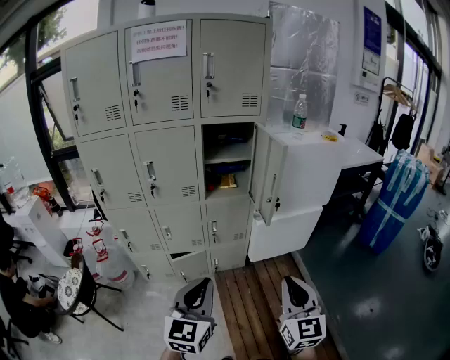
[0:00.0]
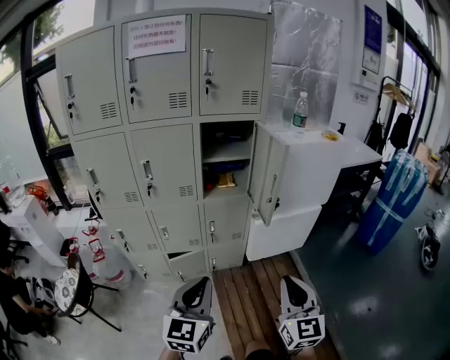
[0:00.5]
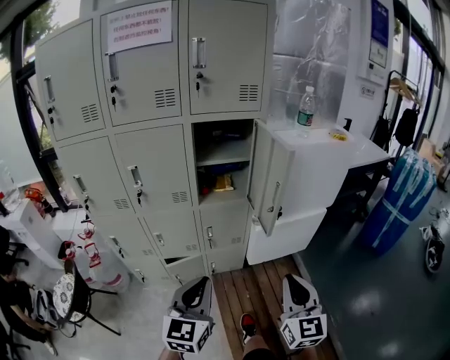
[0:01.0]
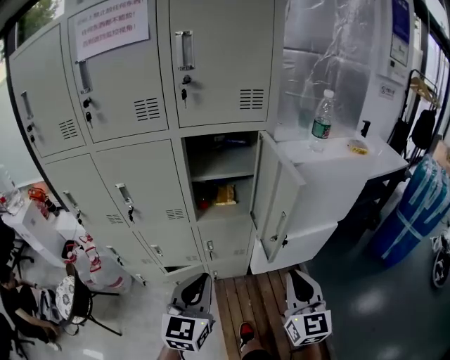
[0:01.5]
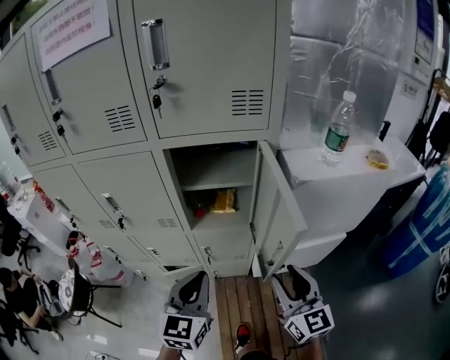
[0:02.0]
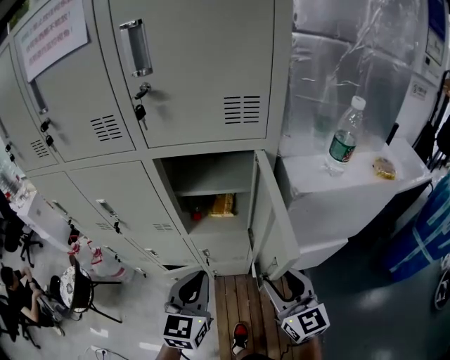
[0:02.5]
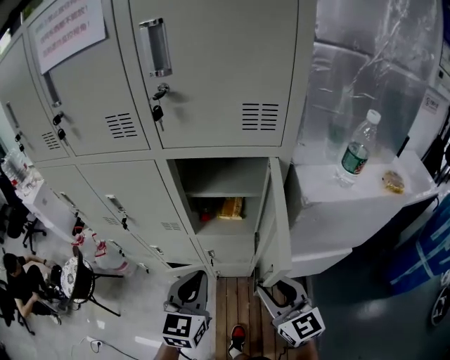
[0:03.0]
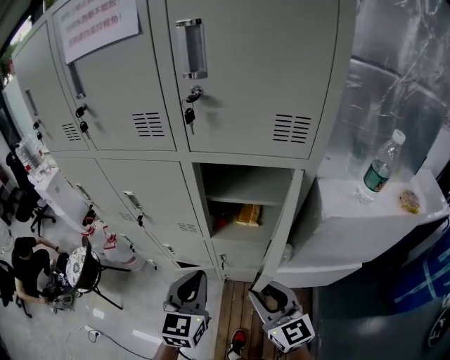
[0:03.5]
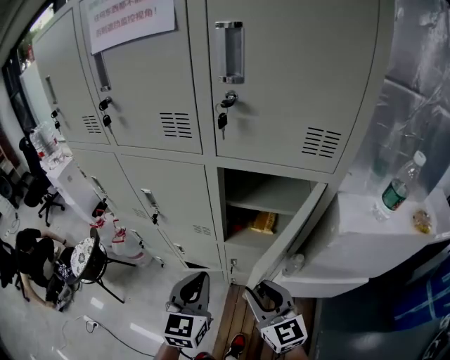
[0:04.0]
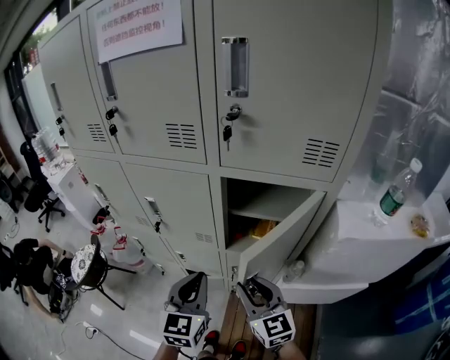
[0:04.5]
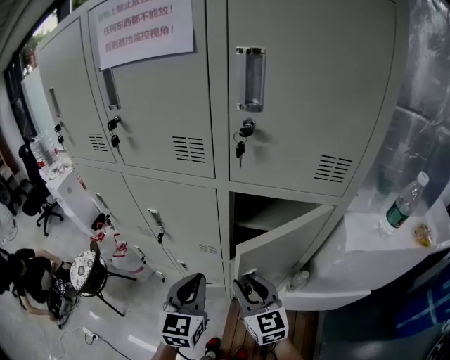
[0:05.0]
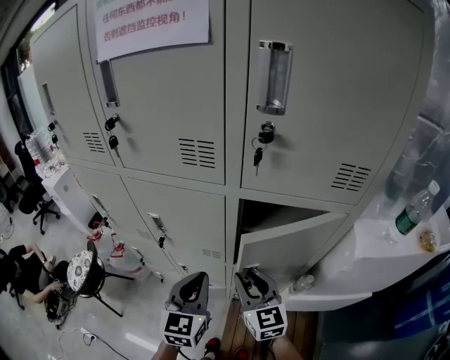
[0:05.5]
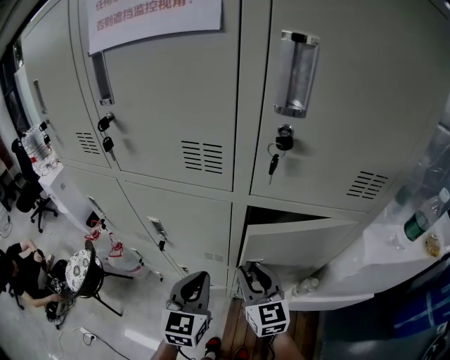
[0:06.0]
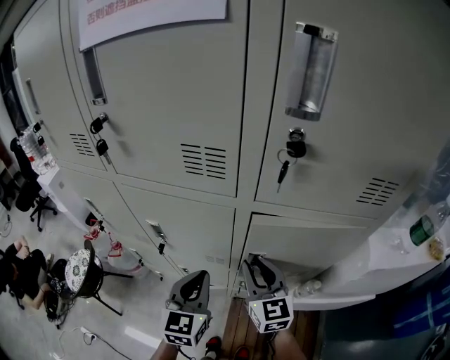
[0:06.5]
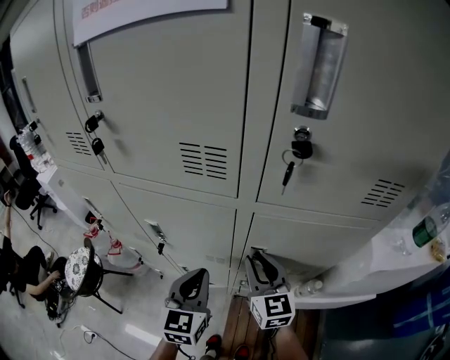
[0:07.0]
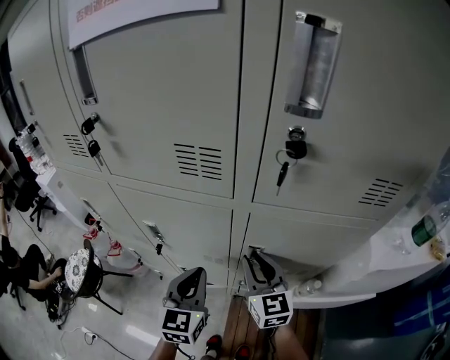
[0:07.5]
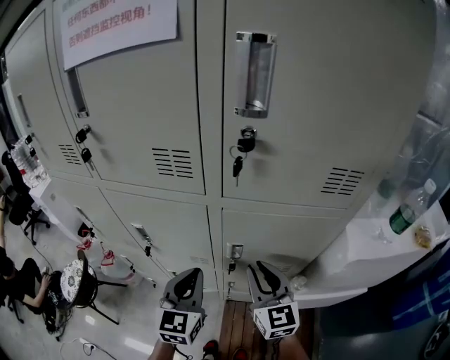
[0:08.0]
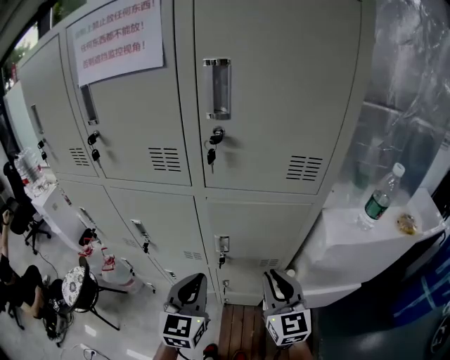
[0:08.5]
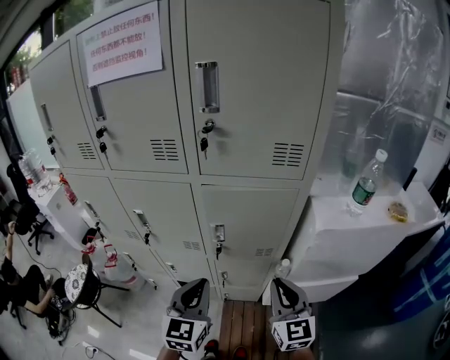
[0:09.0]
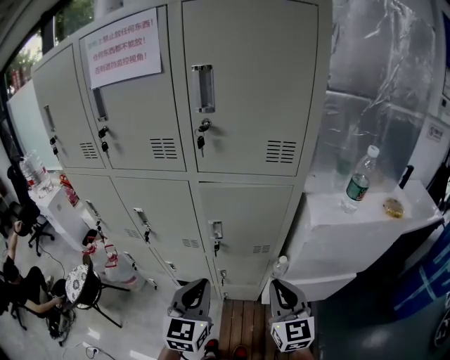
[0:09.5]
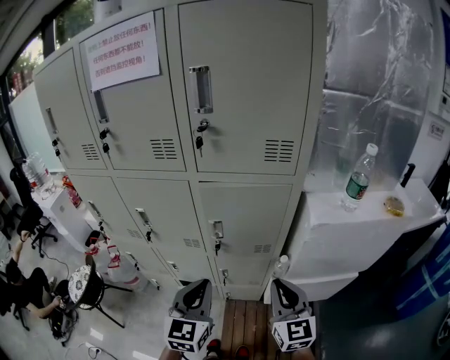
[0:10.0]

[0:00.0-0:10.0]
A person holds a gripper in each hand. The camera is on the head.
0:00.0 to 0:02.0: Both grippers travel together forward, about 35 cm. The right gripper swivels some 20 degrees, and opens.
0:02.0 to 0:04.0: The left gripper heads to the left and forward, covering approximately 10 cm. Meanwhile the right gripper shifts about 15 cm to the left and forward, and turns by roughly 30 degrees.
0:04.0 to 0:06.0: Both grippers travel together forward, some 15 cm.
0:06.0 to 0:08.0: The right gripper is displaced to the right by some 5 cm.
0:08.0 to 0:10.0: The two grippers go some 20 cm backward and to the right.

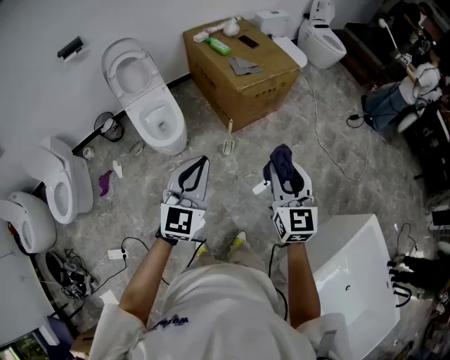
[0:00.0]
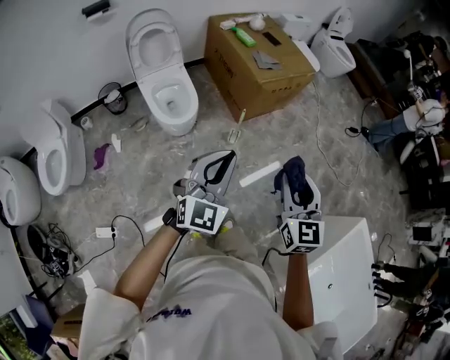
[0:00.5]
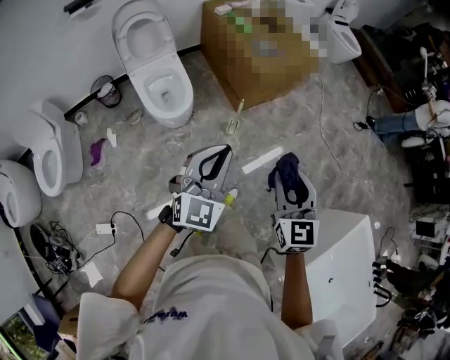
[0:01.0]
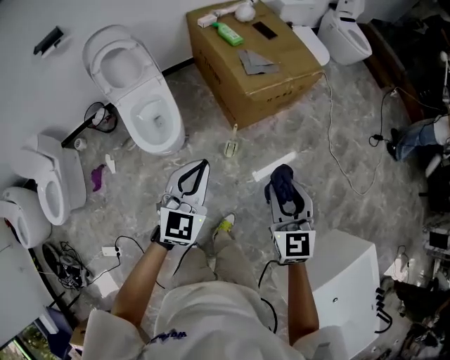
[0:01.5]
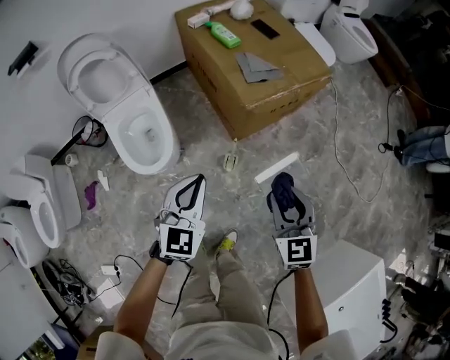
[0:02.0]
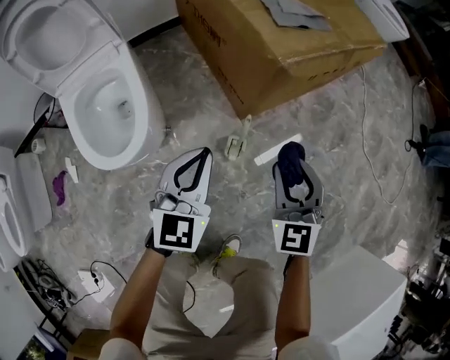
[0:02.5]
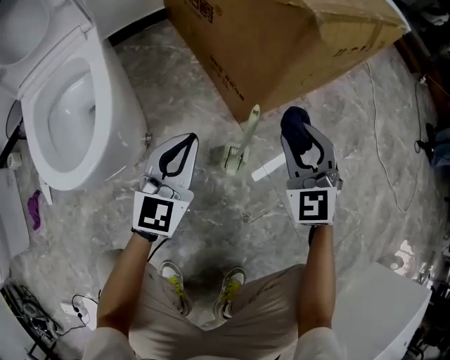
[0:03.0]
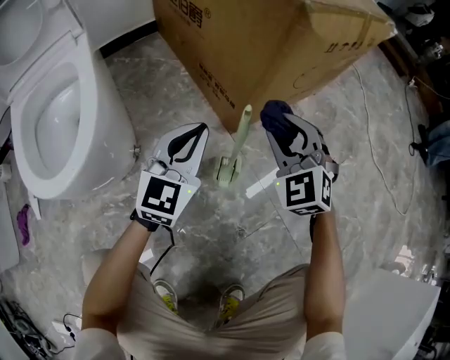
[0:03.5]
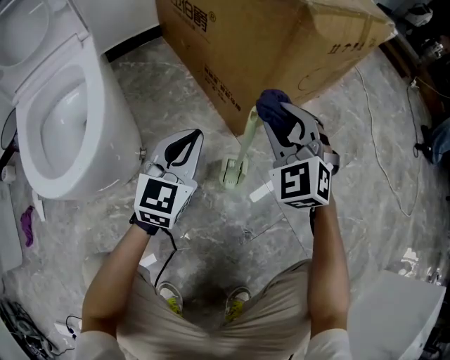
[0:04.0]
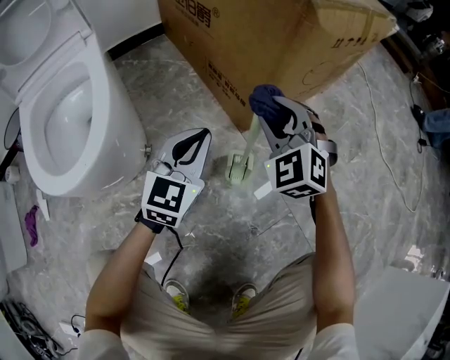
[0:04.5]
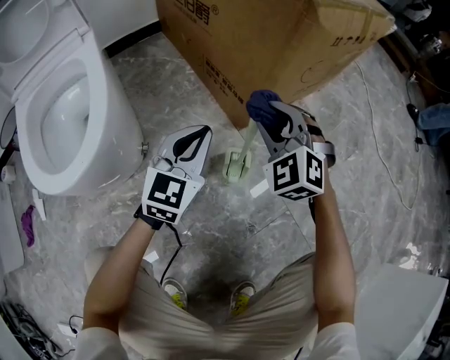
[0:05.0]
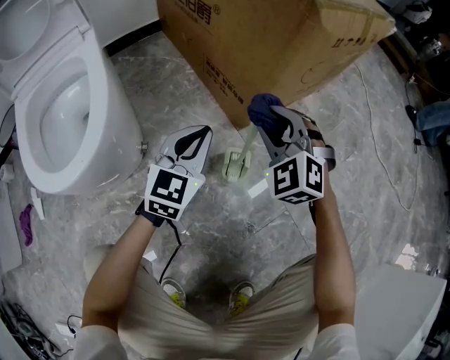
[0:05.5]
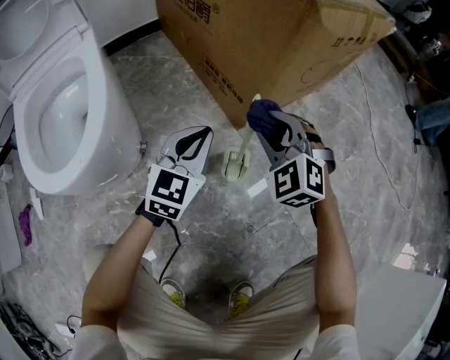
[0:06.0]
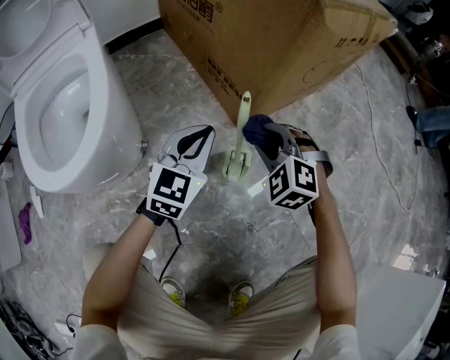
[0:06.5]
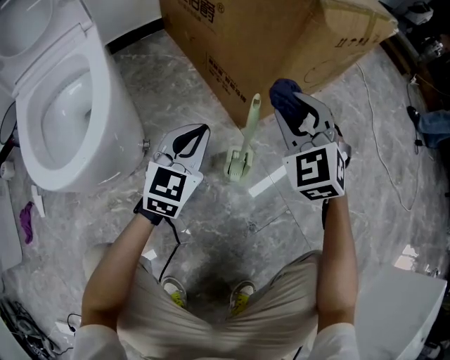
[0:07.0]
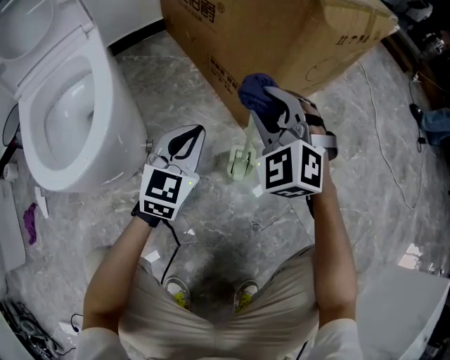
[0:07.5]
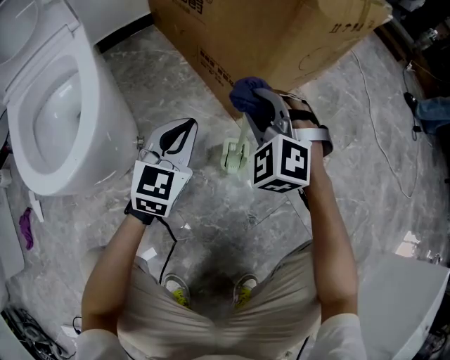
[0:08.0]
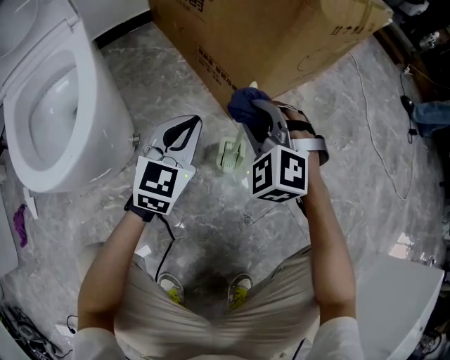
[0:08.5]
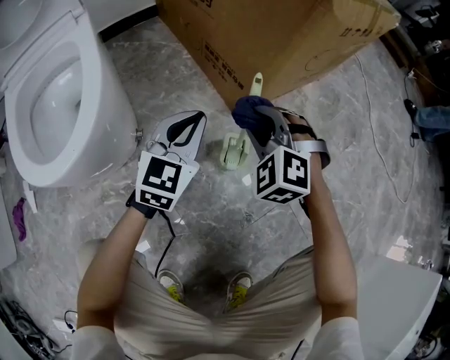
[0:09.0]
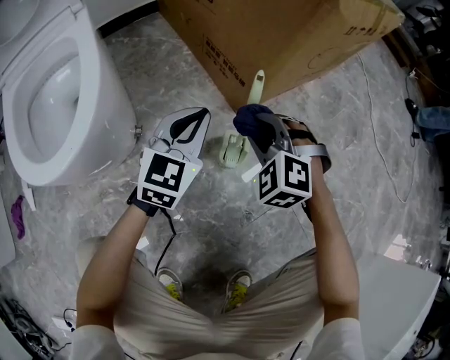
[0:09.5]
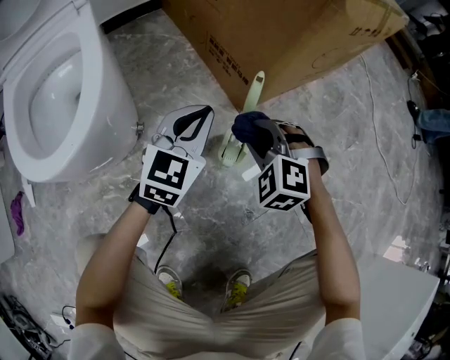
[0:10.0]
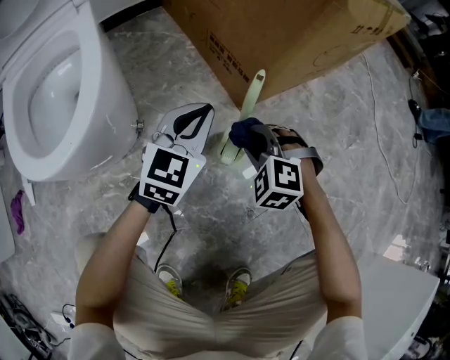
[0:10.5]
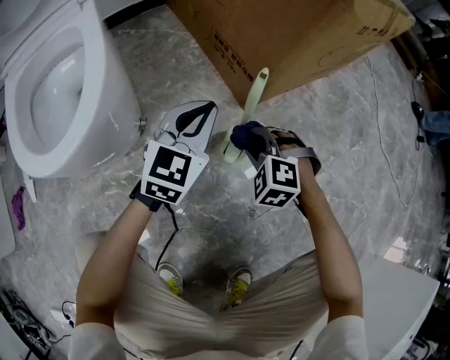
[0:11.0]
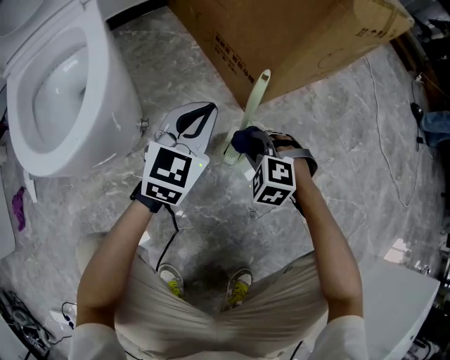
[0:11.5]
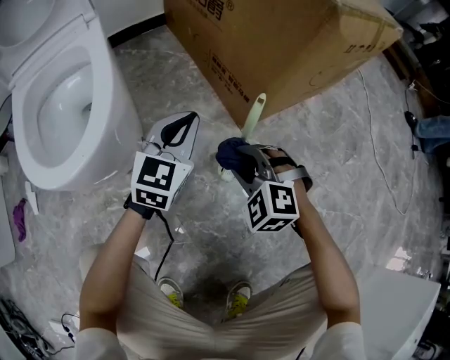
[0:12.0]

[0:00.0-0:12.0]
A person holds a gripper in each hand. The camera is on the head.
0:00.0 to 0:02.0: Both grippers travel together forward and downward, roughly 35 cm.
0:02.0 to 0:04.0: The right gripper heads downward and forward, covering some 50 cm, and swivels roughly 40 degrees. The left gripper goes about 50 cm downward.
0:04.0 to 0:06.0: The right gripper is displaced downward by roughly 5 cm.
0:06.0 to 0:08.0: The right gripper swings up and down, some 10 cm each way, with 2 reversals.
0:08.0 to 0:10.0: The right gripper goes roughly 10 cm downward and backward.
0:10.0 to 0:12.0: The right gripper travels downward and back again, roughly 10 cm each way.

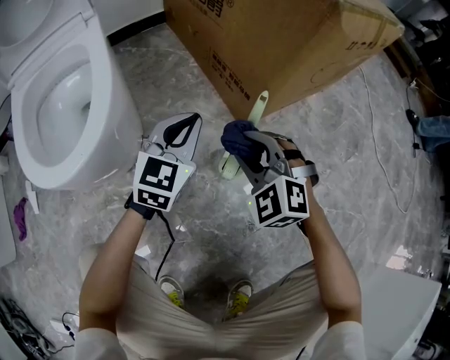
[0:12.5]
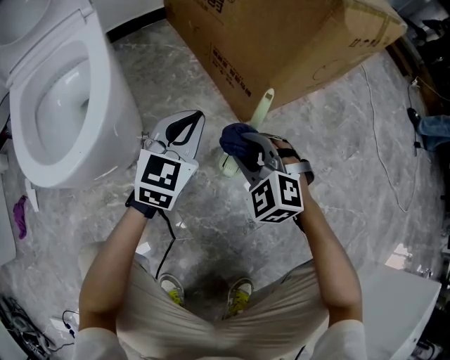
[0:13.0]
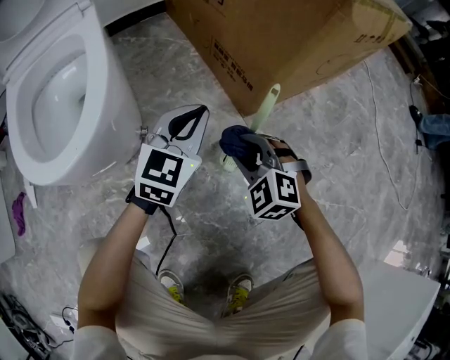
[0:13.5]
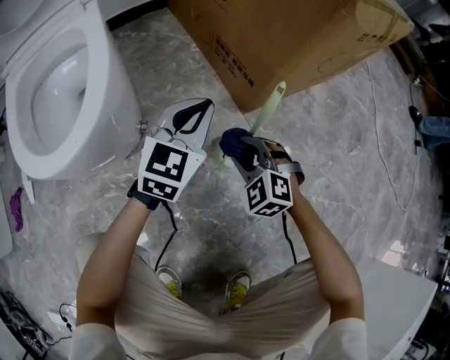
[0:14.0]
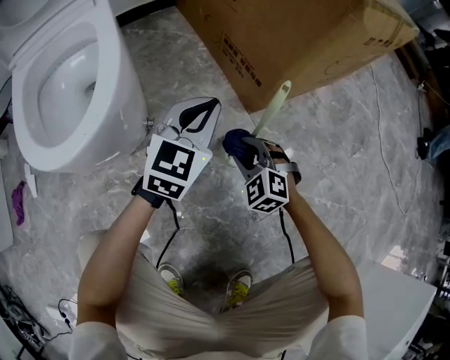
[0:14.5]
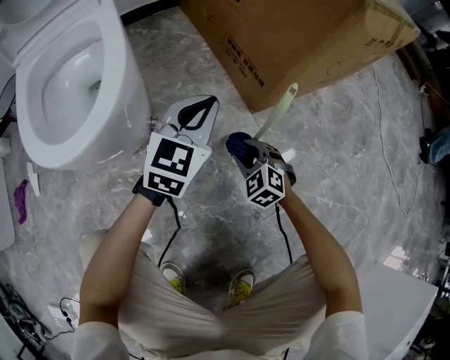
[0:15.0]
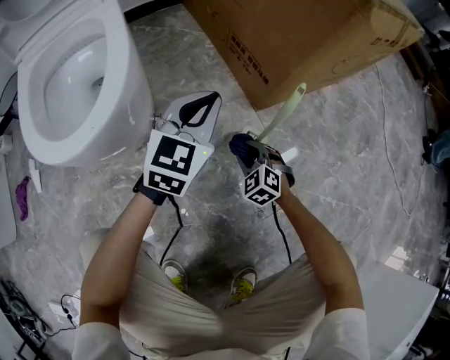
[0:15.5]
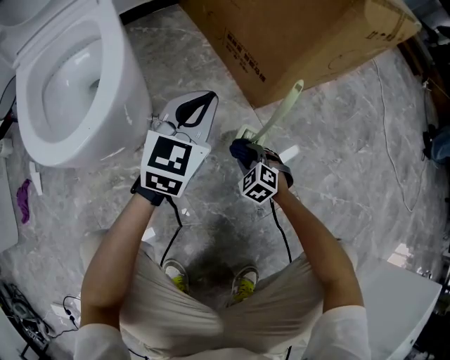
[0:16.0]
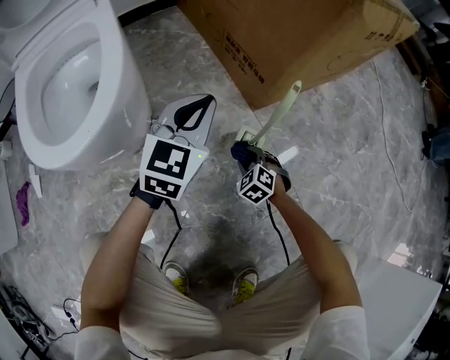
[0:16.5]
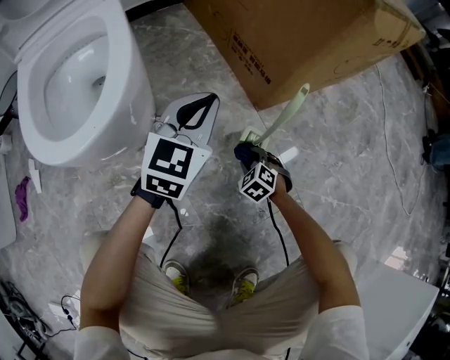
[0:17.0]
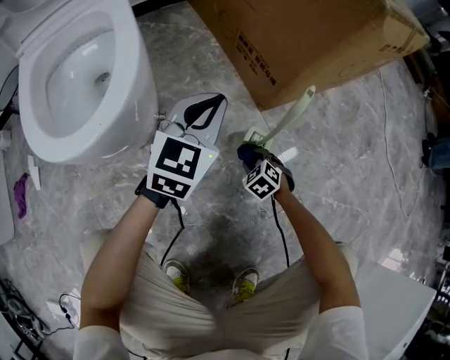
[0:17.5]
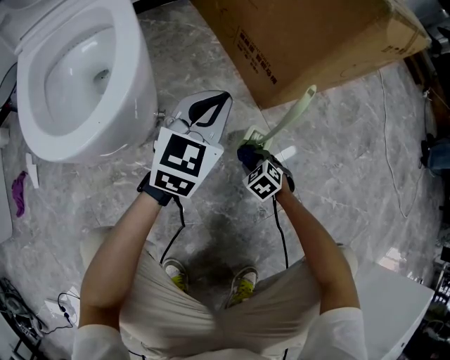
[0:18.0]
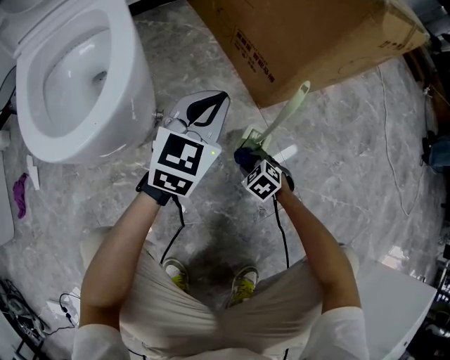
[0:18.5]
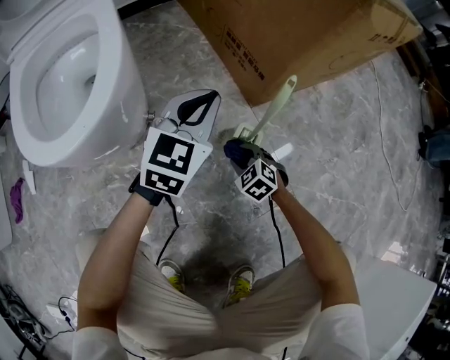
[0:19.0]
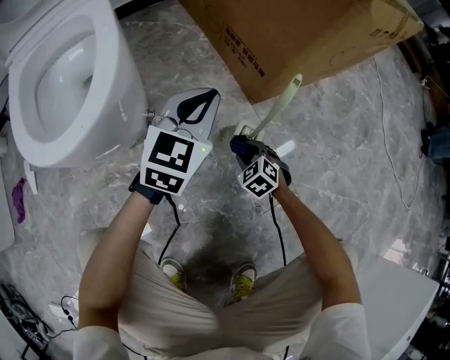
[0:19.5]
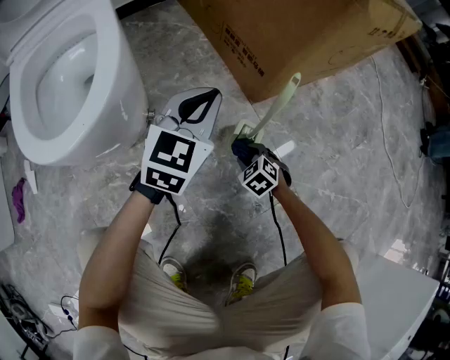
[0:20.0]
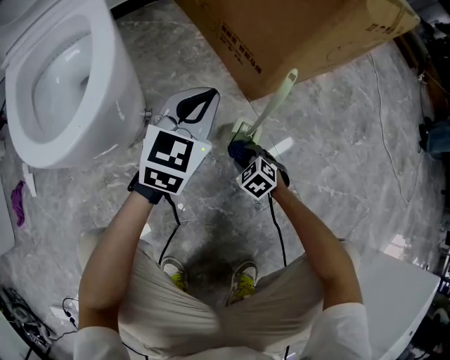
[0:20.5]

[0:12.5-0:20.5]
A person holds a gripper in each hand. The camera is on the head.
0:12.5 to 0:14.5: The right gripper moves downward, some 15 cm.
0:14.5 to 0:16.5: The right gripper goes approximately 10 cm downward.
0:16.5 to 0:20.5: The grippers stay close to where they were, moving slightly.
